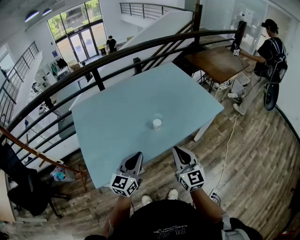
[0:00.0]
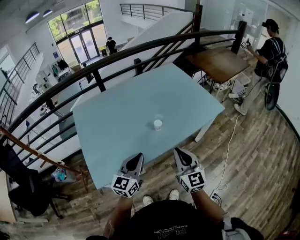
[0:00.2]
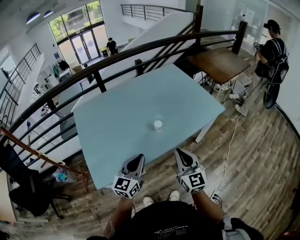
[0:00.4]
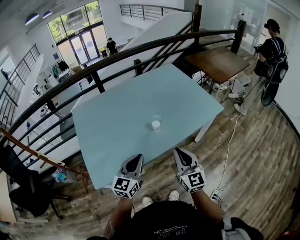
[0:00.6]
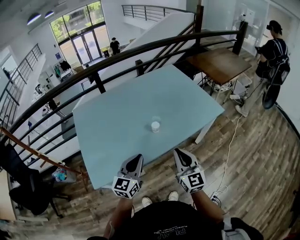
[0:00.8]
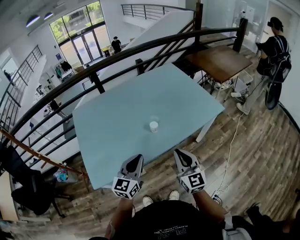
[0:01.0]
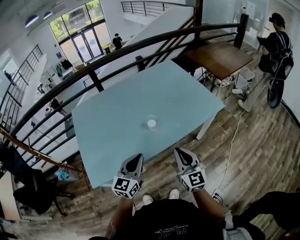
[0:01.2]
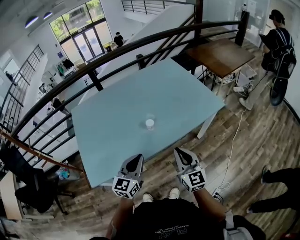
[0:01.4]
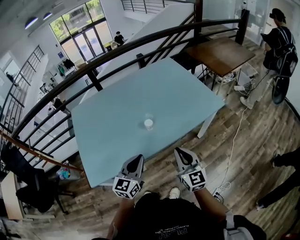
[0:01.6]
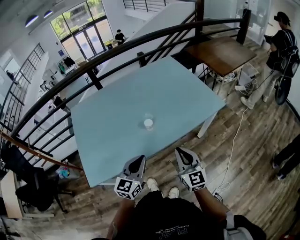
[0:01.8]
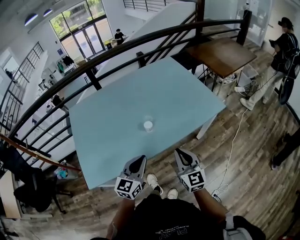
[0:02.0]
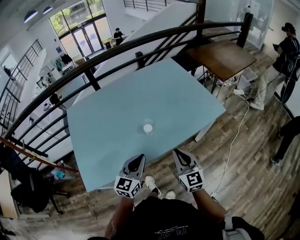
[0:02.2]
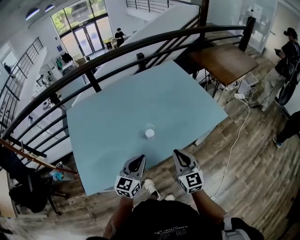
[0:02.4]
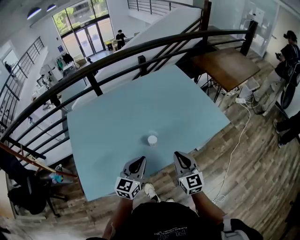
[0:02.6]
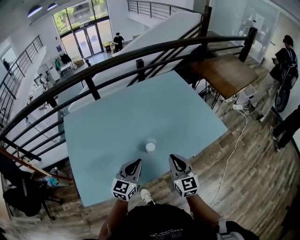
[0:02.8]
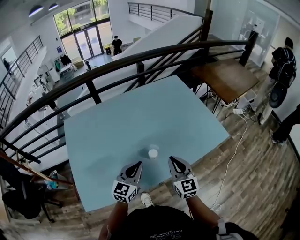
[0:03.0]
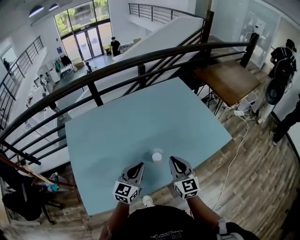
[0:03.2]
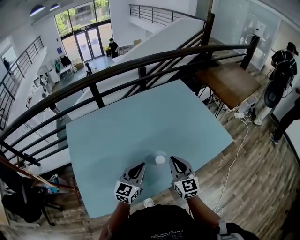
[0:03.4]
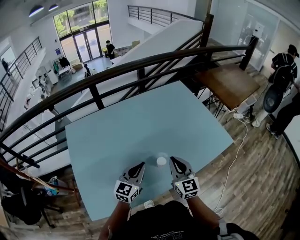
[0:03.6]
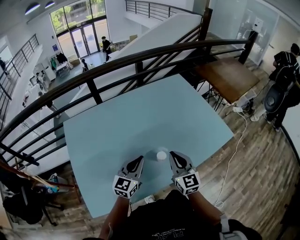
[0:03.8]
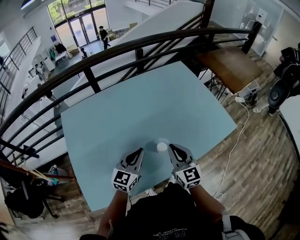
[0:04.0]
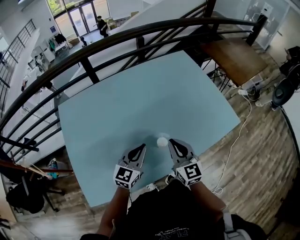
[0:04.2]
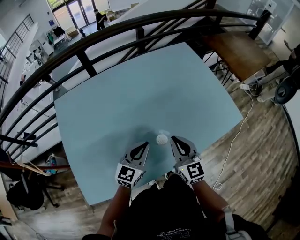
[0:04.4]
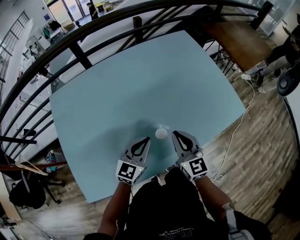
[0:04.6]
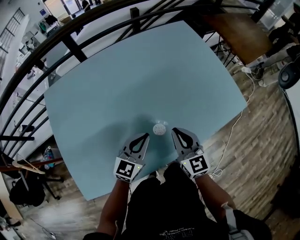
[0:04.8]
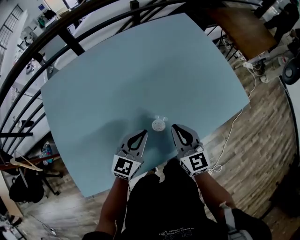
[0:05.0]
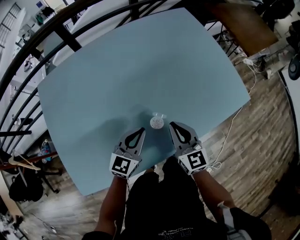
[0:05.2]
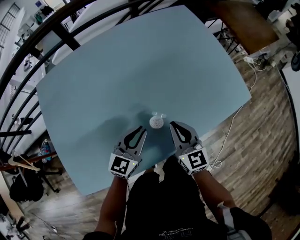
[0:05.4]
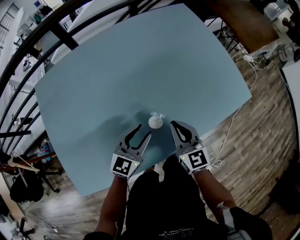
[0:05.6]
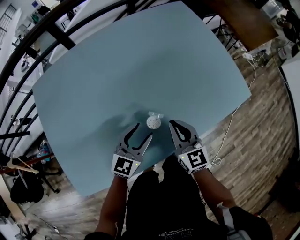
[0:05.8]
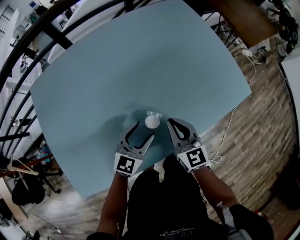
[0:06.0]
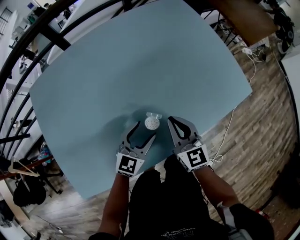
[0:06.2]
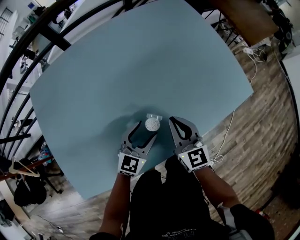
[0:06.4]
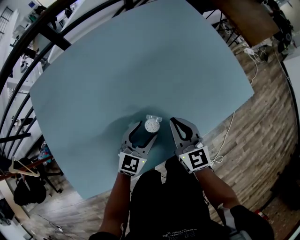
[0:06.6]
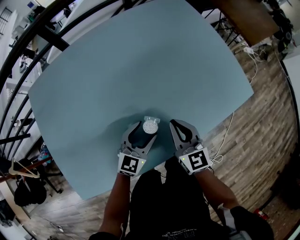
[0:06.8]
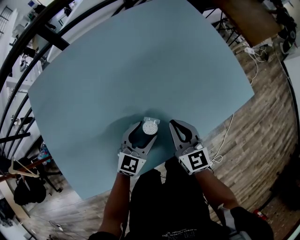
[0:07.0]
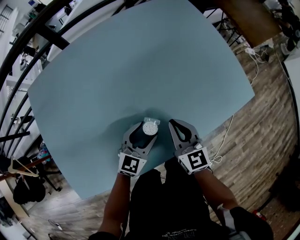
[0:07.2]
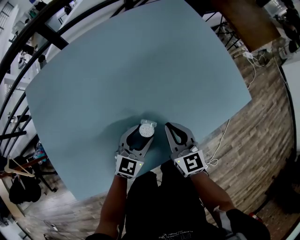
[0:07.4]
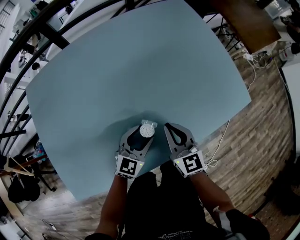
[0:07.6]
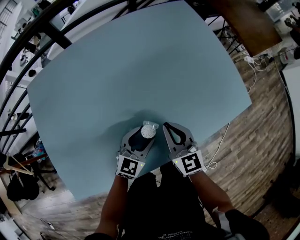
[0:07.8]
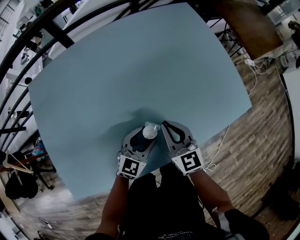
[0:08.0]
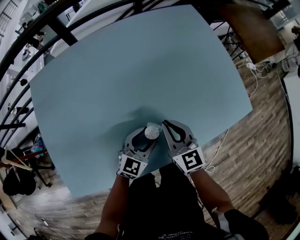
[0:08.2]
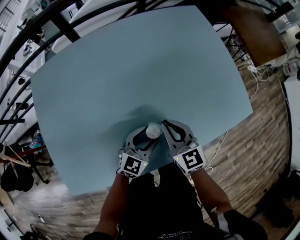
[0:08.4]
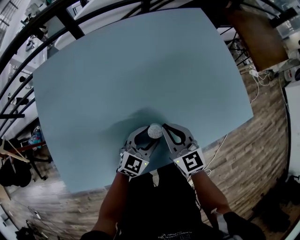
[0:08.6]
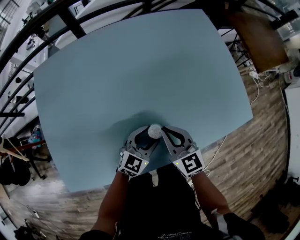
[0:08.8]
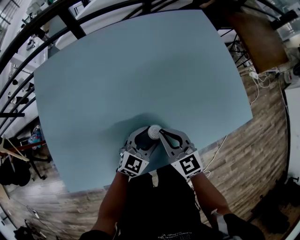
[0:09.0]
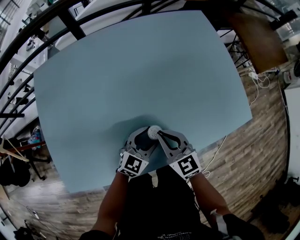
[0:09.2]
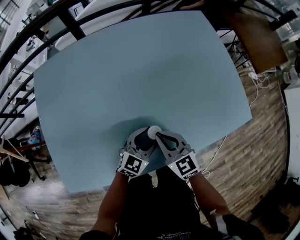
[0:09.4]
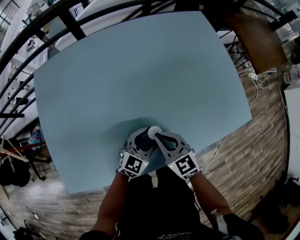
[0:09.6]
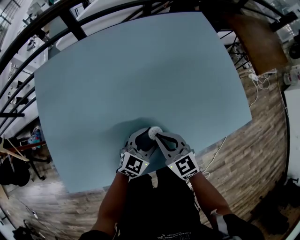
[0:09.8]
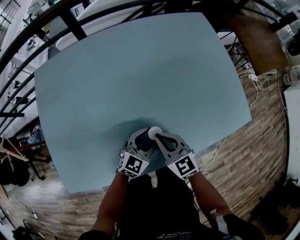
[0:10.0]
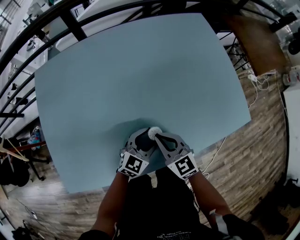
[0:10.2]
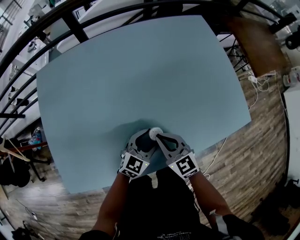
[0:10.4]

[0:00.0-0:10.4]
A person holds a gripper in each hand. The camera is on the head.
0:00.0 to 0:01.4: The two grippers go approximately 10 cm to the right.
0:01.4 to 0:03.0: The two grippers go some 15 cm forward.
0:03.0 to 0:04.4: The right gripper is displaced forward and to the left by about 10 cm; the left gripper goes approximately 10 cm forward and downward.
0:04.4 to 0:06.0: The grippers both shift downward by approximately 10 cm. The left gripper opens its fingers.
0:06.0 to 0:07.4: The grippers stay close to where they were, moving slightly.
0:07.4 to 0:09.0: The right gripper heads to the left, covering approximately 5 cm, and swivels some 20 degrees.
0:09.0 to 0:10.4: The grippers make only small movements.

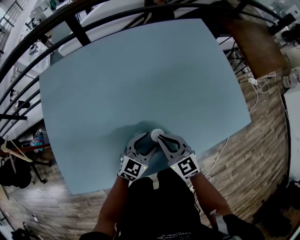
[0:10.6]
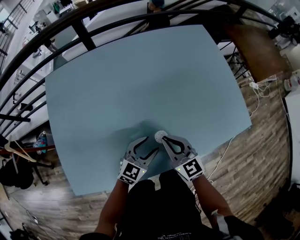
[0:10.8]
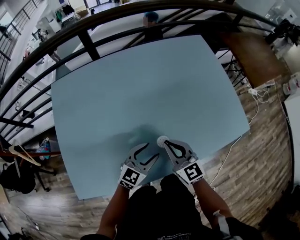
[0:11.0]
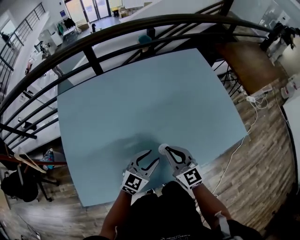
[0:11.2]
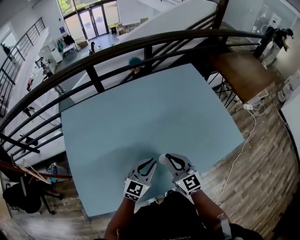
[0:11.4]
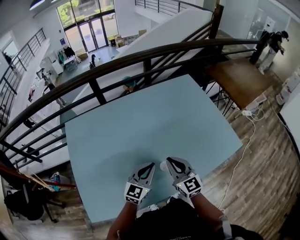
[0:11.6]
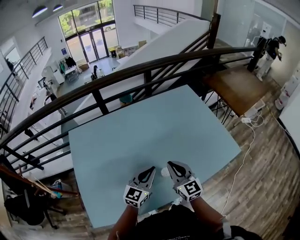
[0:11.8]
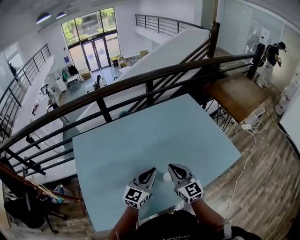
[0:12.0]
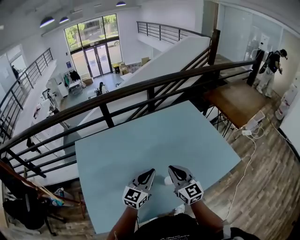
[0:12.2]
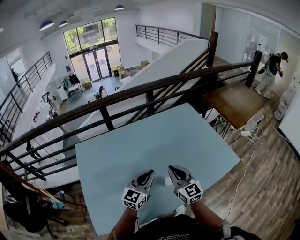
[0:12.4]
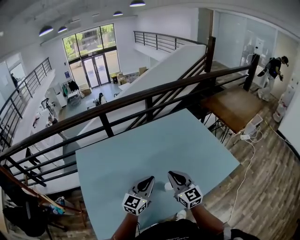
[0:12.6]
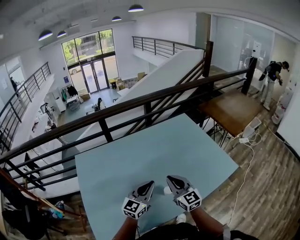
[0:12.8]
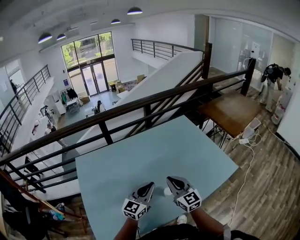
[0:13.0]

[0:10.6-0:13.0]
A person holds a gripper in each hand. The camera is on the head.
0:10.6 to 0:11.8: Both grippers move upward, about 15 cm. The left gripper closes its fingers. The right gripper turns by about 20 degrees.
0:11.8 to 0:13.0: The left gripper heads upward, covering approximately 5 cm. Meanwhile the right gripper changes place by about 5 cm.

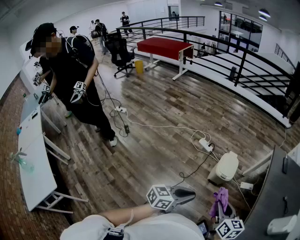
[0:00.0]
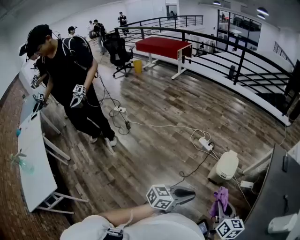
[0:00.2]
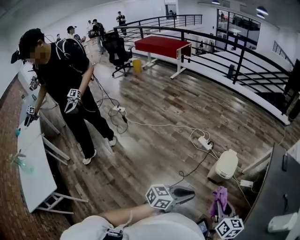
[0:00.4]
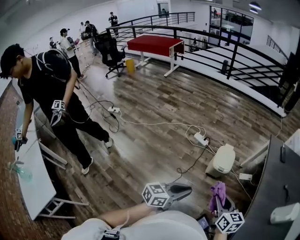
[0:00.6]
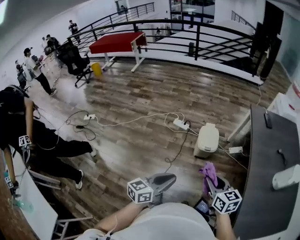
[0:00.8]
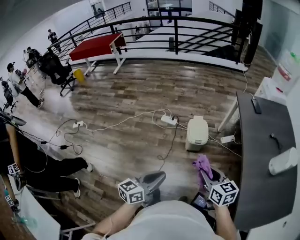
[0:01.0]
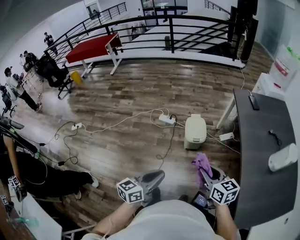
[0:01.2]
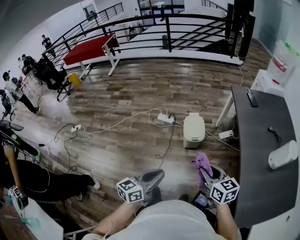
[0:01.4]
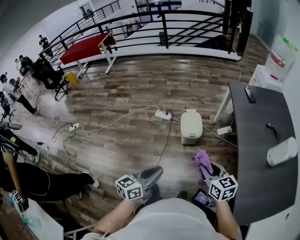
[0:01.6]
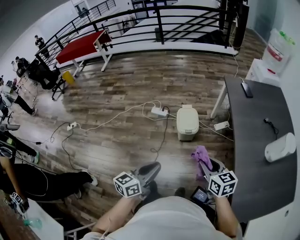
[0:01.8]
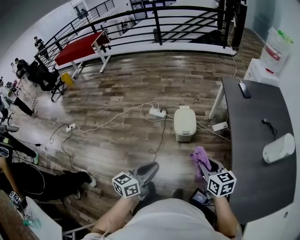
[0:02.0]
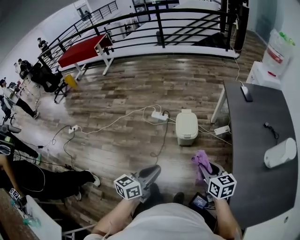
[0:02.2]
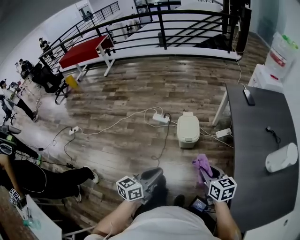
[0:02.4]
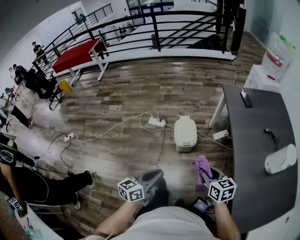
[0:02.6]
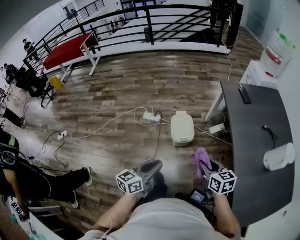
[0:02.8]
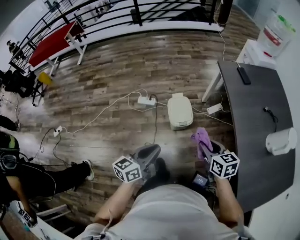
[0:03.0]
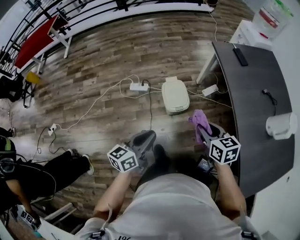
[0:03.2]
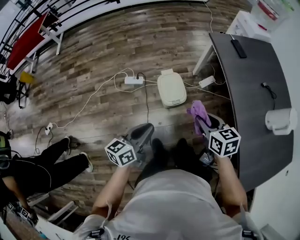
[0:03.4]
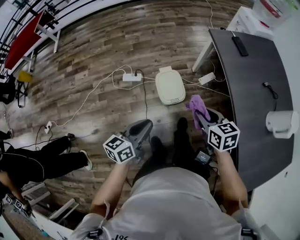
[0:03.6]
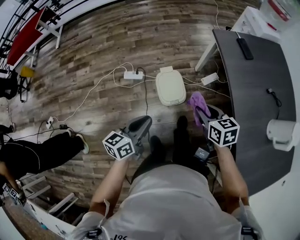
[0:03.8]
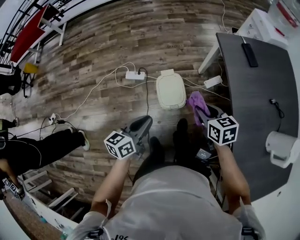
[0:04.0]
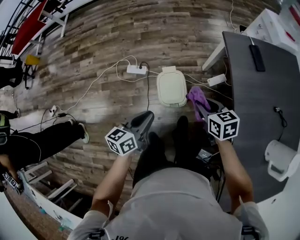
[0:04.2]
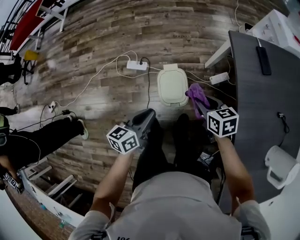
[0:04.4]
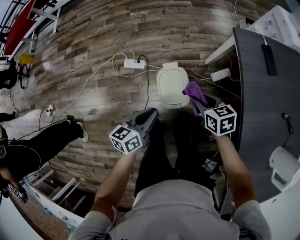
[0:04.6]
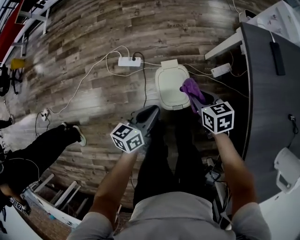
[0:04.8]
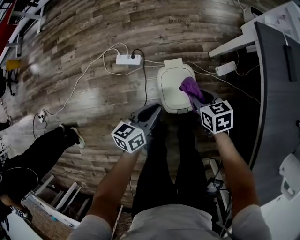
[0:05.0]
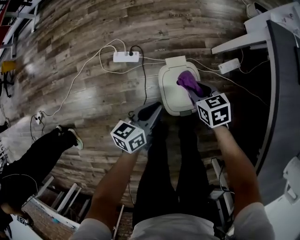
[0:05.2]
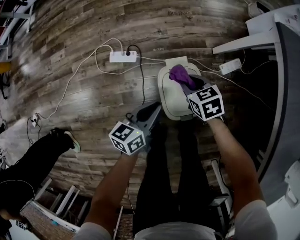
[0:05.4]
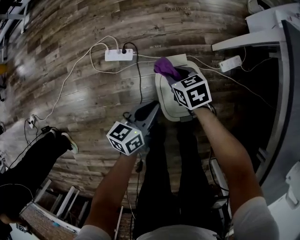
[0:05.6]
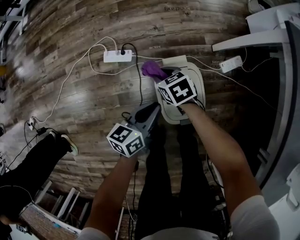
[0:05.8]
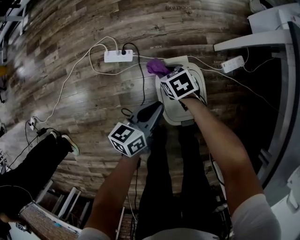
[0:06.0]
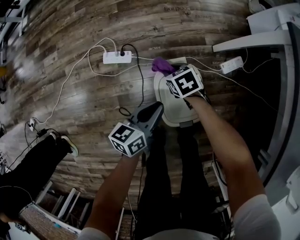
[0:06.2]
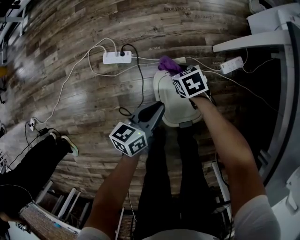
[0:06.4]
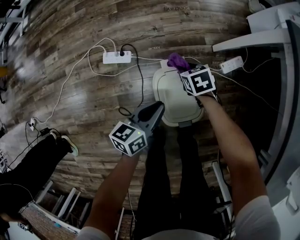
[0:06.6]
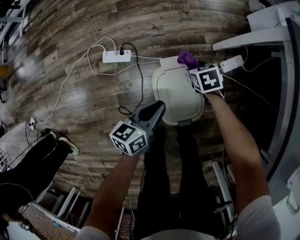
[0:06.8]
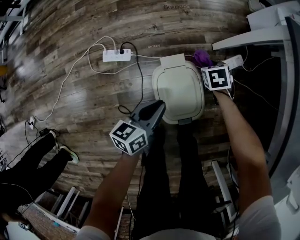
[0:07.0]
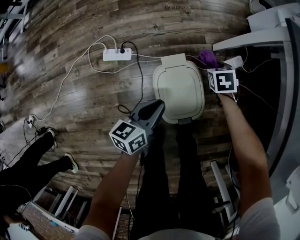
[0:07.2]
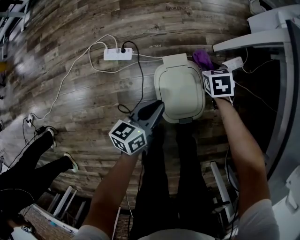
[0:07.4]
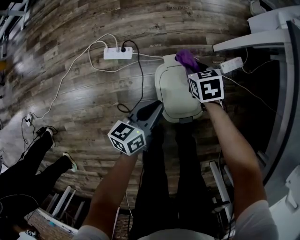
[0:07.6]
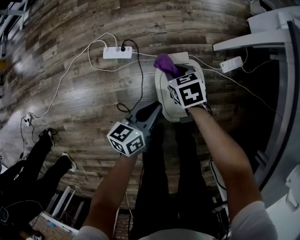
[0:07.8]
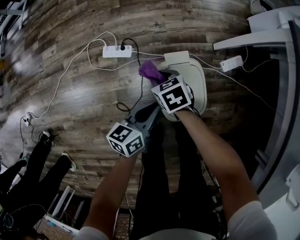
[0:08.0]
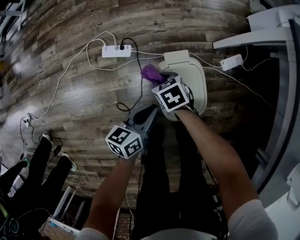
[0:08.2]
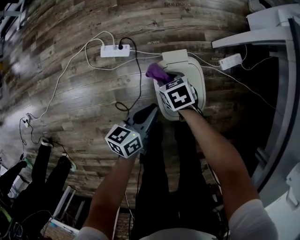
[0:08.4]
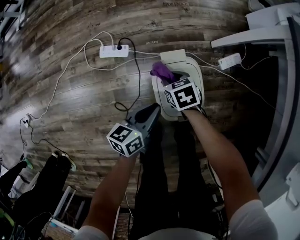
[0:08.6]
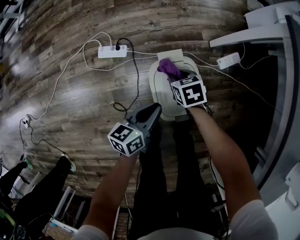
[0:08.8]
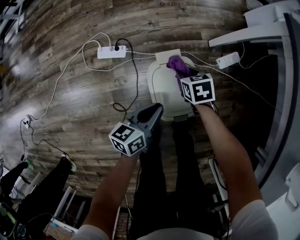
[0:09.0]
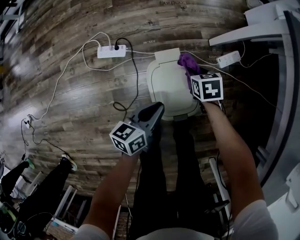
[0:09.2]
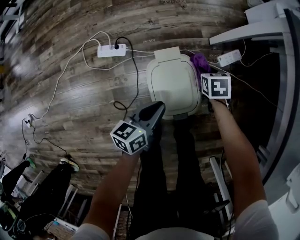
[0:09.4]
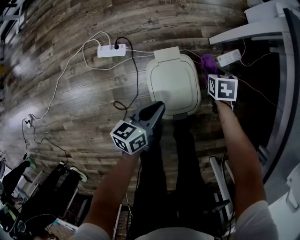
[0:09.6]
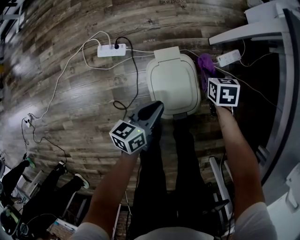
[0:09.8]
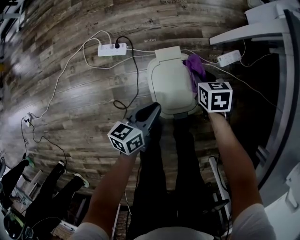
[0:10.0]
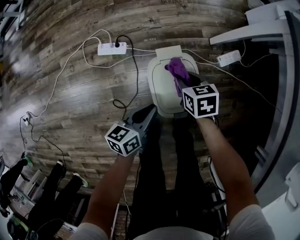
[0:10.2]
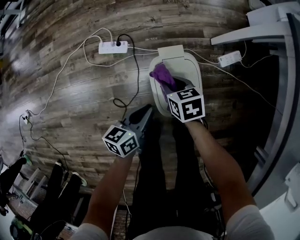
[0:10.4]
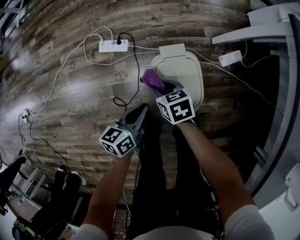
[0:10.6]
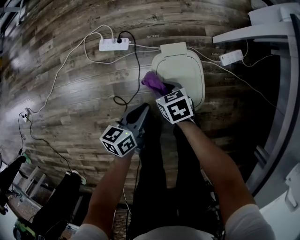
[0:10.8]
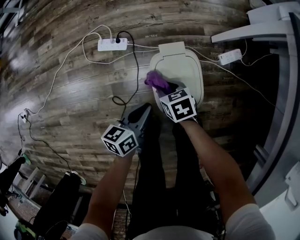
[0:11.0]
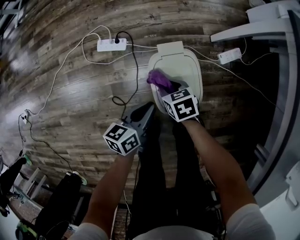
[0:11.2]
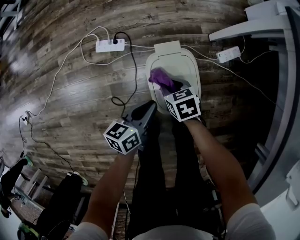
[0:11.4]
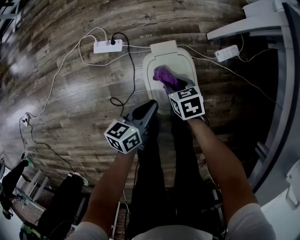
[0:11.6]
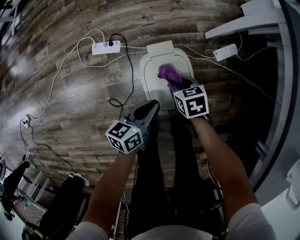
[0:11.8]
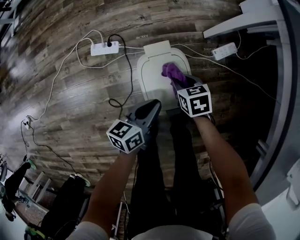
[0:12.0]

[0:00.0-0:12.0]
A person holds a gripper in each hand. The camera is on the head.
0:00.0 to 0:01.6: The right gripper moves to the right, approximately 5 cm.
0:01.6 to 0:03.0: Both grippers move forward, some 15 cm.
0:03.0 to 0:04.4: The two grippers go roughly 30 cm forward and downward.
0:04.4 to 0:06.0: The left gripper heads downward and forward, covering about 30 cm, while the right gripper heads downward, to the left and forward, covering roughly 50 cm.
0:07.6 to 0:09.0: The right gripper reaches some 15 cm to the left, then returns.
0:09.0 to 0:10.4: The right gripper is displaced backward by about 5 cm, and goes to the right and returns, roughly 15 cm each way.
0:10.4 to 0:12.0: Both grippers move to the right, about 10 cm.
